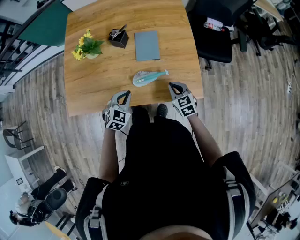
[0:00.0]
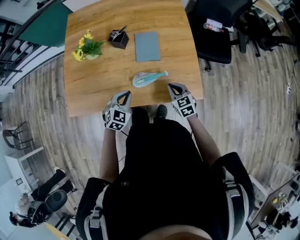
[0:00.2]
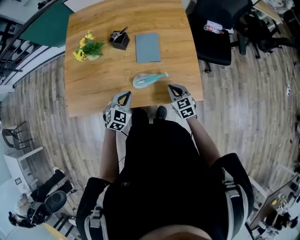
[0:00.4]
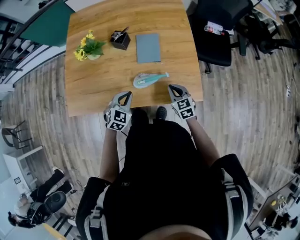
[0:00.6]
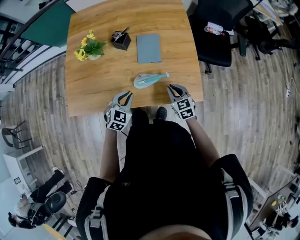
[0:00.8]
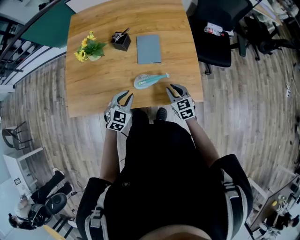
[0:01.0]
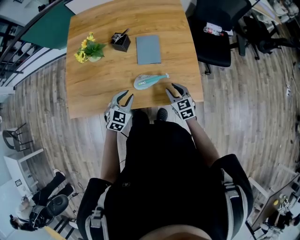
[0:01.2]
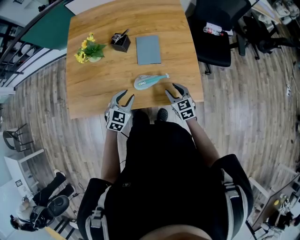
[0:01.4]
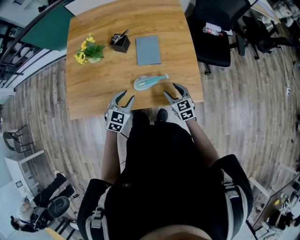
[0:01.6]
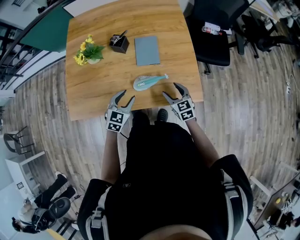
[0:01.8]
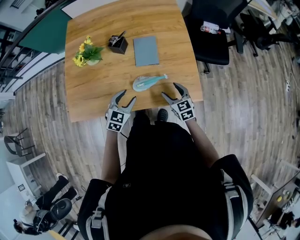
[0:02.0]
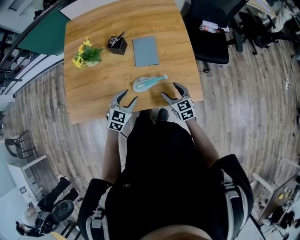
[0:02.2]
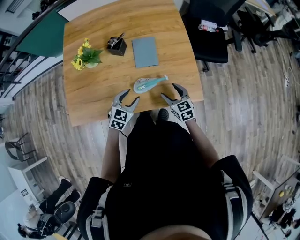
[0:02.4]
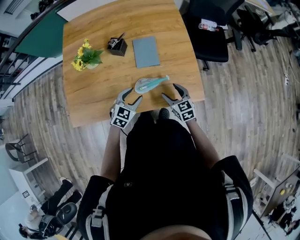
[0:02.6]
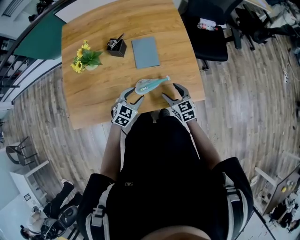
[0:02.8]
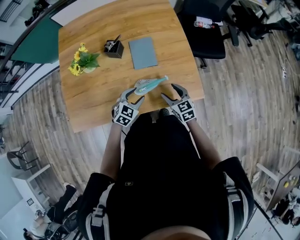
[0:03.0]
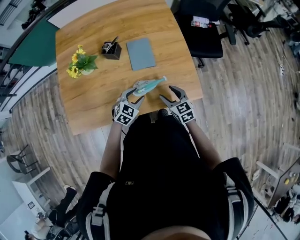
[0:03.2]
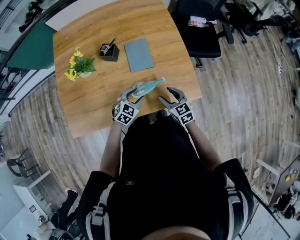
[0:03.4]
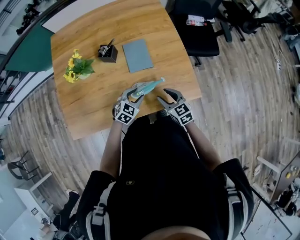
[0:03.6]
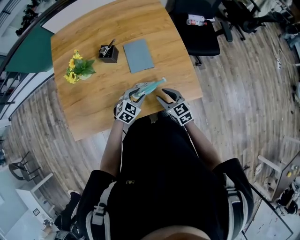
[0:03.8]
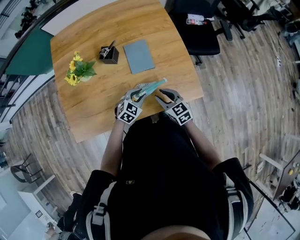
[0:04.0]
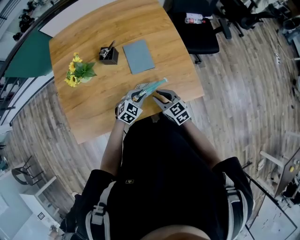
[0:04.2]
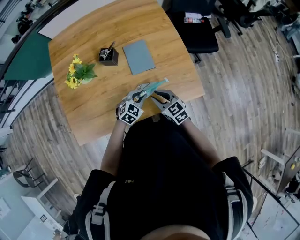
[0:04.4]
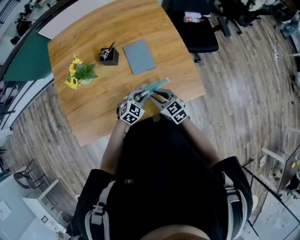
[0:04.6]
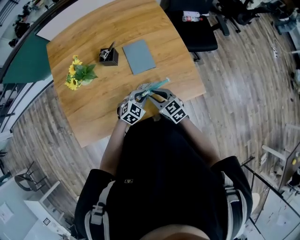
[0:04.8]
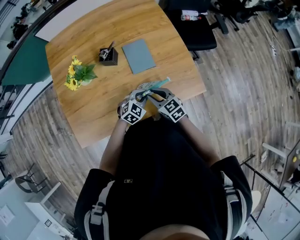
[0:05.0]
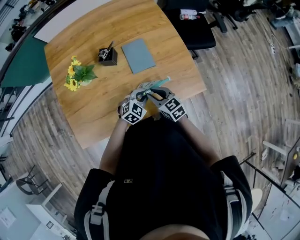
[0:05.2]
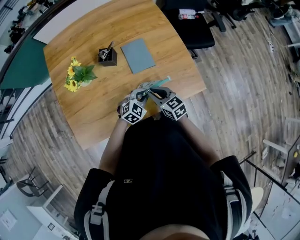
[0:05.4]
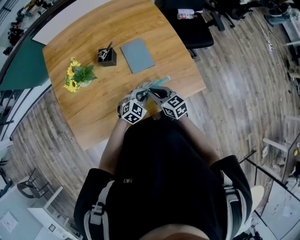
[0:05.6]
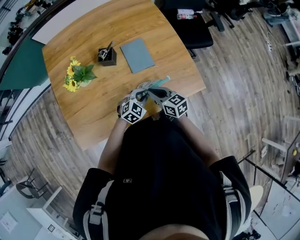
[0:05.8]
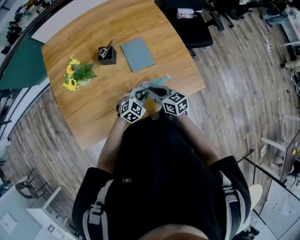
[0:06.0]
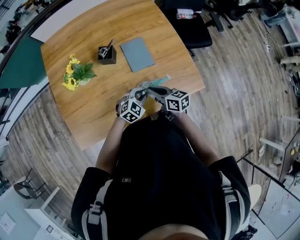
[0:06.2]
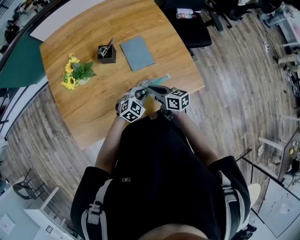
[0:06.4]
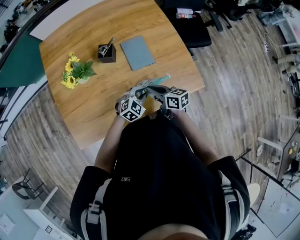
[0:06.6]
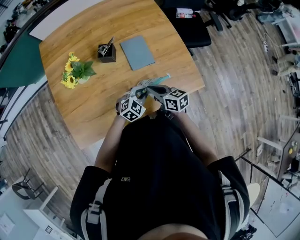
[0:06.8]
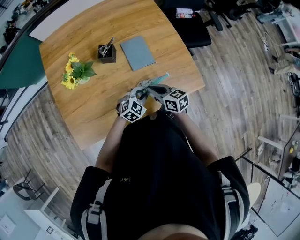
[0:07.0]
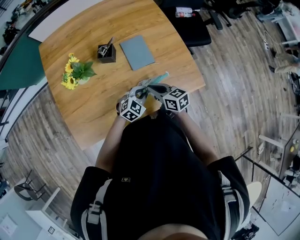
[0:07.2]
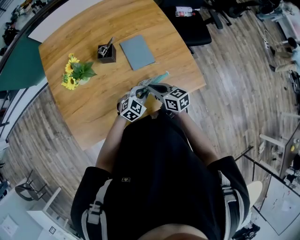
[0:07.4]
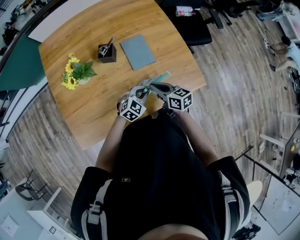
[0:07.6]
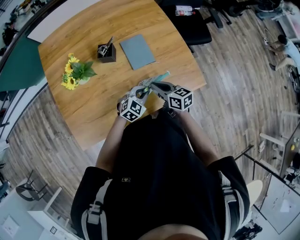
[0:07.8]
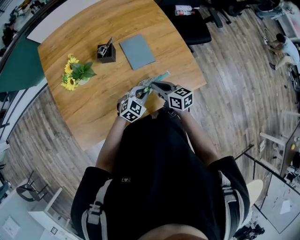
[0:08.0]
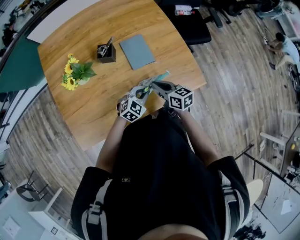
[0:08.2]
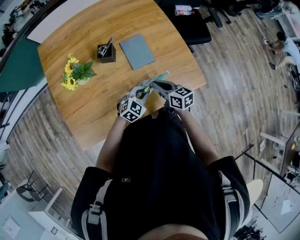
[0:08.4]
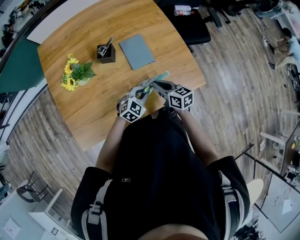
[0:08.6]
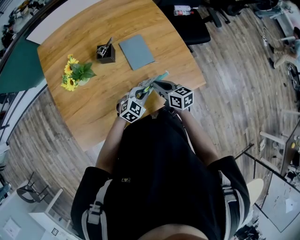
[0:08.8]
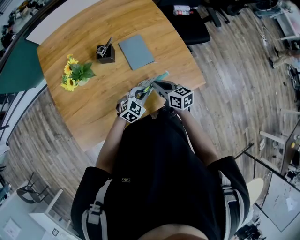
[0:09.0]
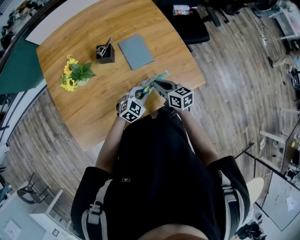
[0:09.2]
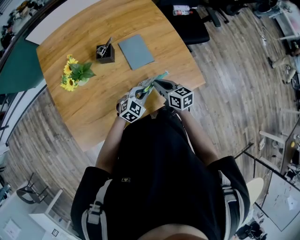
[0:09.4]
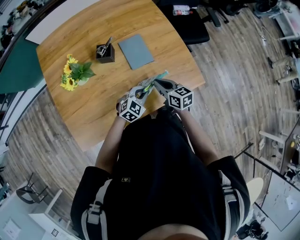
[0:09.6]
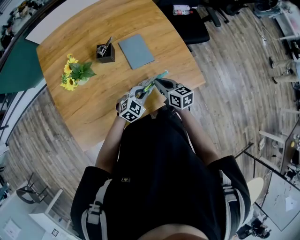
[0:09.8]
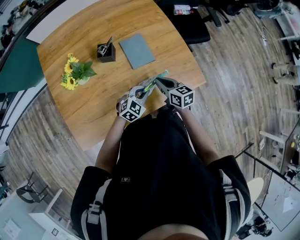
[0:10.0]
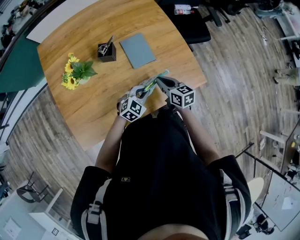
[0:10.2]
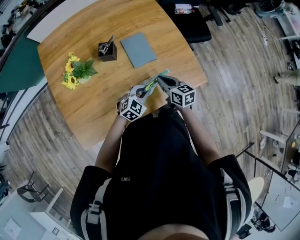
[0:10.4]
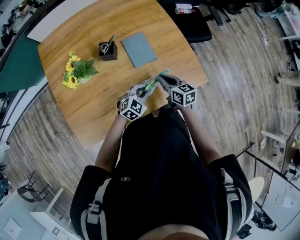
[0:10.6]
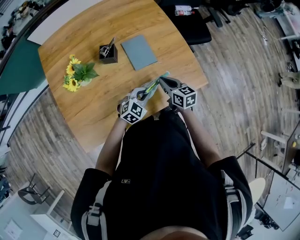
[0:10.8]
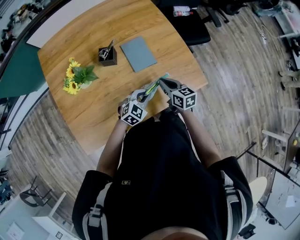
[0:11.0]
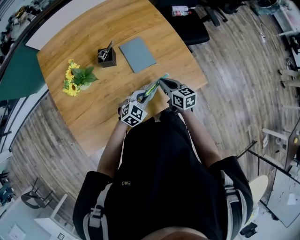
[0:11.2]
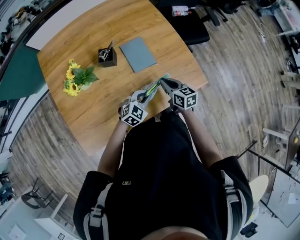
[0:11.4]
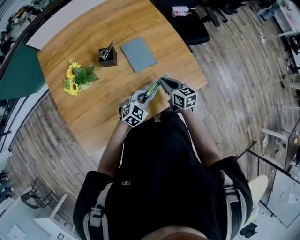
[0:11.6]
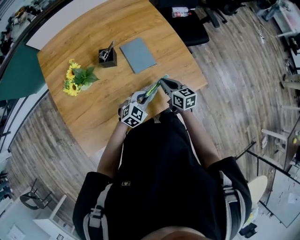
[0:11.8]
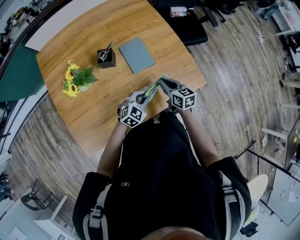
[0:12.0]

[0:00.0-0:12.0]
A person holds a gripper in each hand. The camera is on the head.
0:00.0 to 0:01.6: The right gripper opens, while the left gripper opens its fingers.
0:01.6 to 0:03.0: The left gripper changes place by roughly 5 cm.
0:03.0 to 0:04.4: The left gripper closes its fingers, while the right gripper heads to the left, covering some 10 cm, and closes up.
0:04.4 to 0:06.0: The right gripper swivels roughly 20 degrees.
0:06.0 to 0:10.4: The grippers move only a little.
0:10.4 to 0:12.0: There are only small adjustments of the grippers.

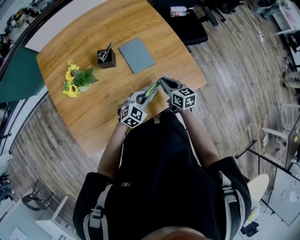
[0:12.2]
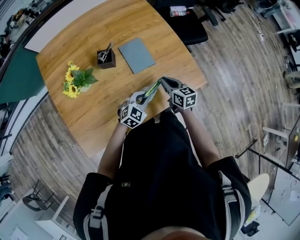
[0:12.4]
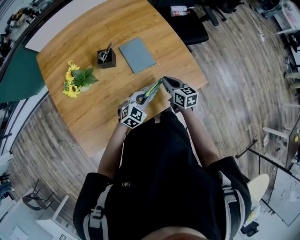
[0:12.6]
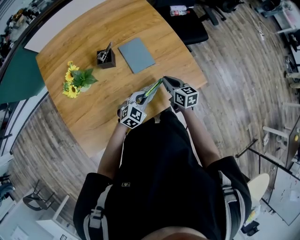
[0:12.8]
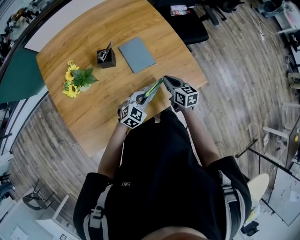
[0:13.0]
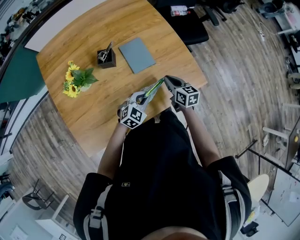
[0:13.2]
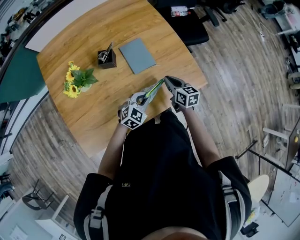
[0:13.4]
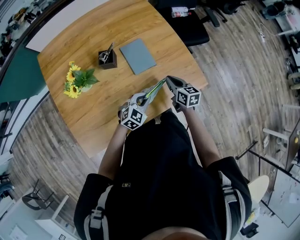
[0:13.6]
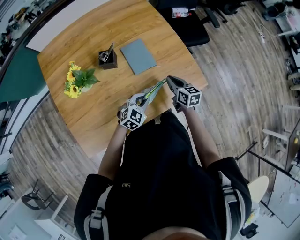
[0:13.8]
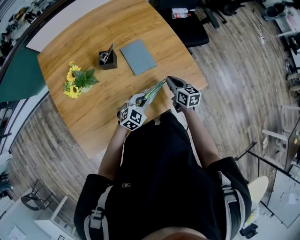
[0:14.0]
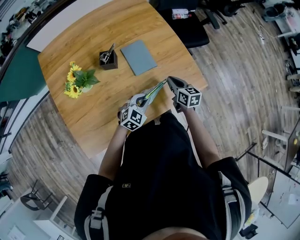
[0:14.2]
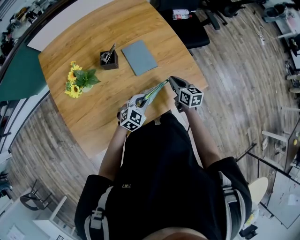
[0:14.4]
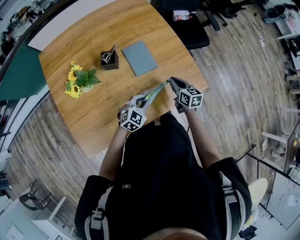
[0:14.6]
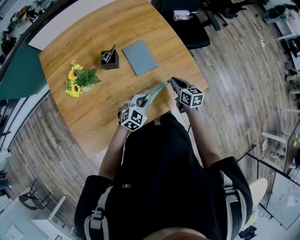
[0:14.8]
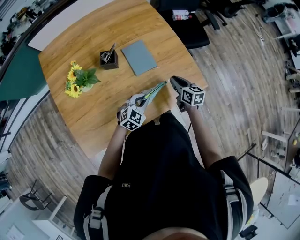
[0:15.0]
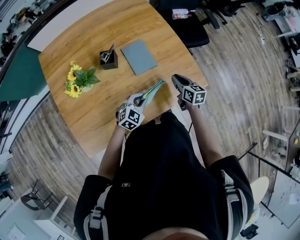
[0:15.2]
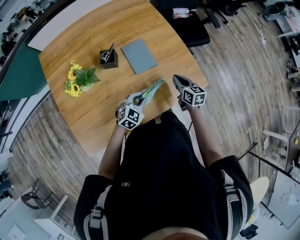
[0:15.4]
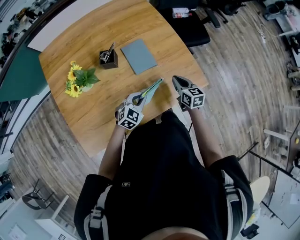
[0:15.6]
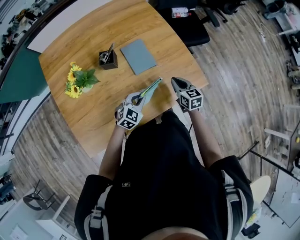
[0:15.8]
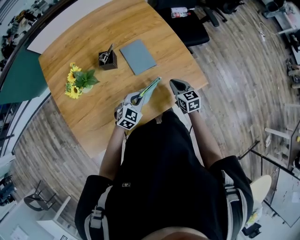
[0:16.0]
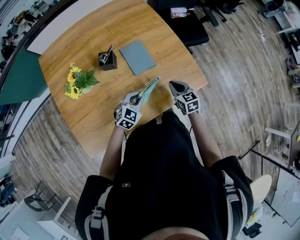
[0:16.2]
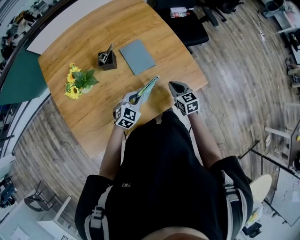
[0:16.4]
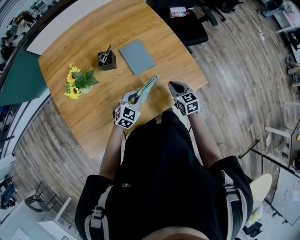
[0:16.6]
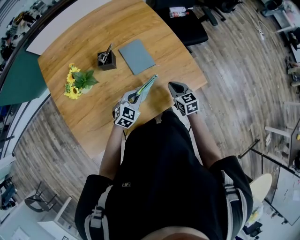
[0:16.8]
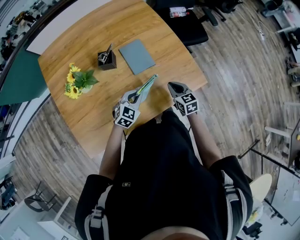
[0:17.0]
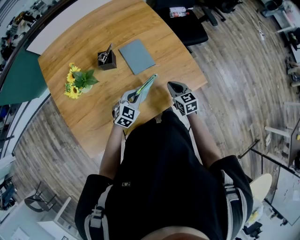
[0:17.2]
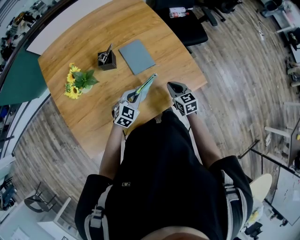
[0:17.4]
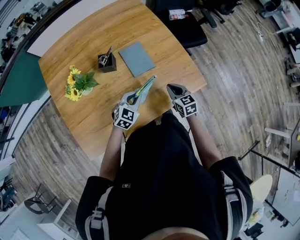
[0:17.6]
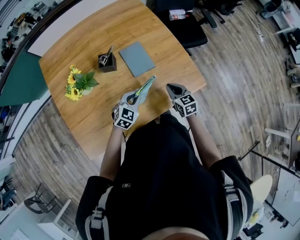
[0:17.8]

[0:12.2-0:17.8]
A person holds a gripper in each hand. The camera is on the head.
0:12.2 to 0:15.0: The grippers stay close to where they were, moving slightly.
0:15.0 to 0:16.4: There are only small adjustments of the grippers.
0:16.4 to 0:17.8: The two grippers keep their place.

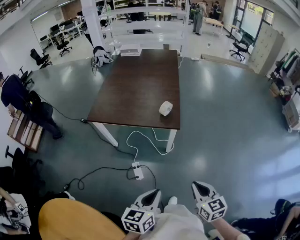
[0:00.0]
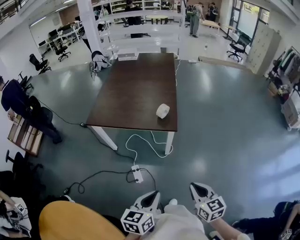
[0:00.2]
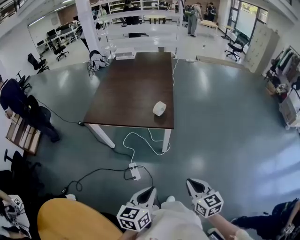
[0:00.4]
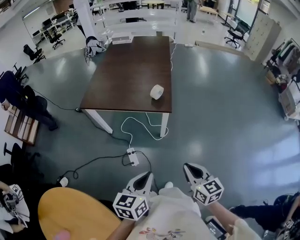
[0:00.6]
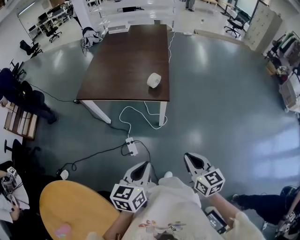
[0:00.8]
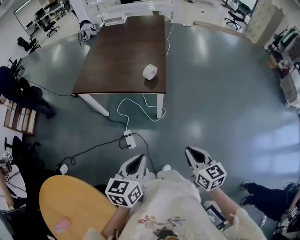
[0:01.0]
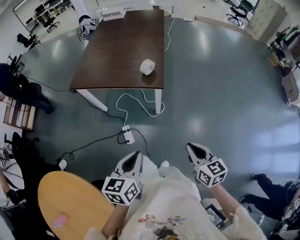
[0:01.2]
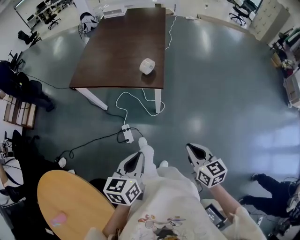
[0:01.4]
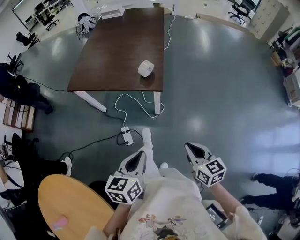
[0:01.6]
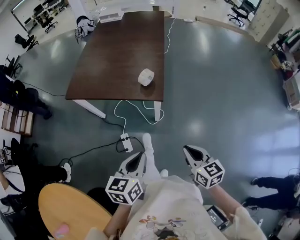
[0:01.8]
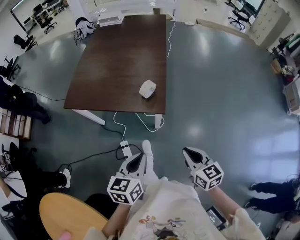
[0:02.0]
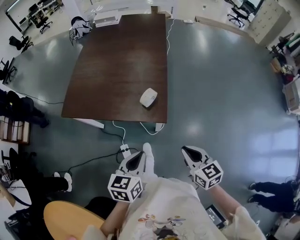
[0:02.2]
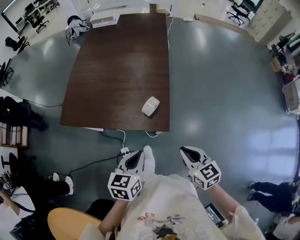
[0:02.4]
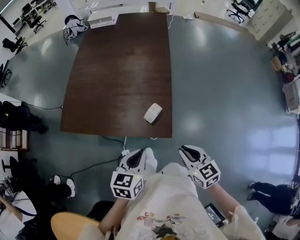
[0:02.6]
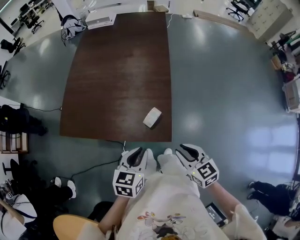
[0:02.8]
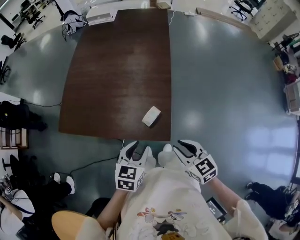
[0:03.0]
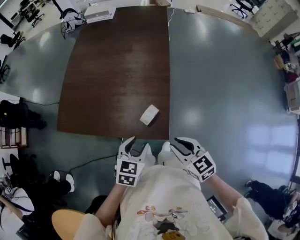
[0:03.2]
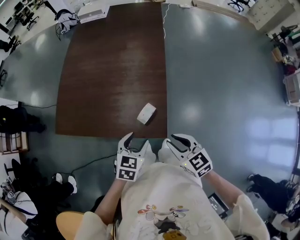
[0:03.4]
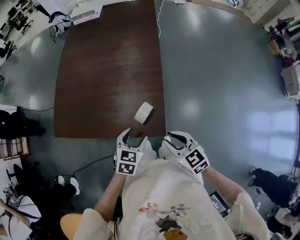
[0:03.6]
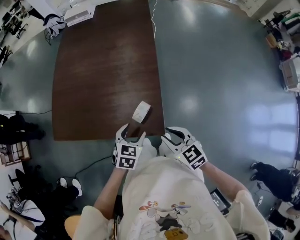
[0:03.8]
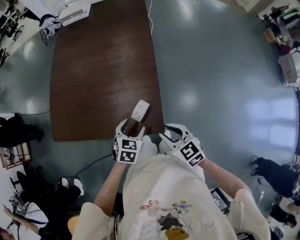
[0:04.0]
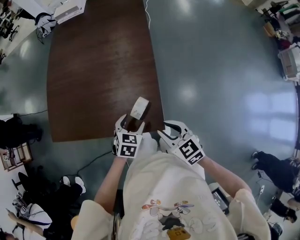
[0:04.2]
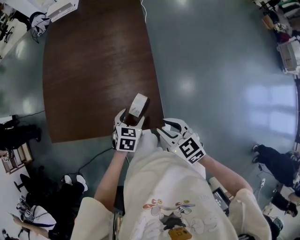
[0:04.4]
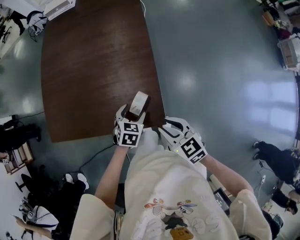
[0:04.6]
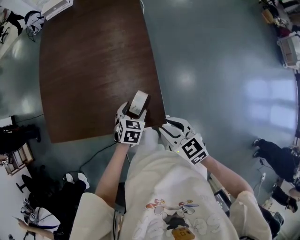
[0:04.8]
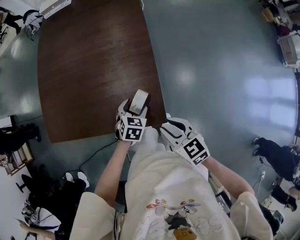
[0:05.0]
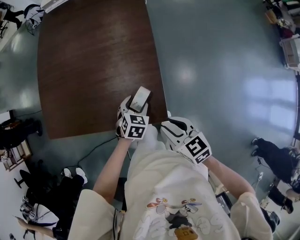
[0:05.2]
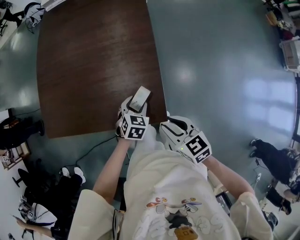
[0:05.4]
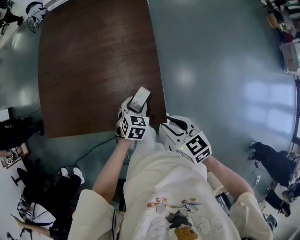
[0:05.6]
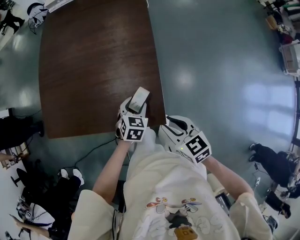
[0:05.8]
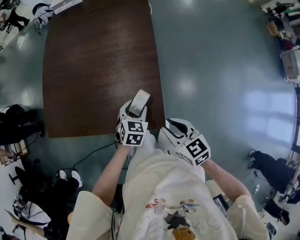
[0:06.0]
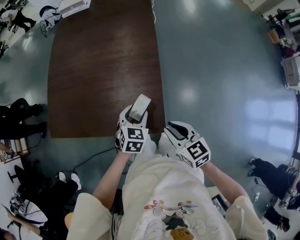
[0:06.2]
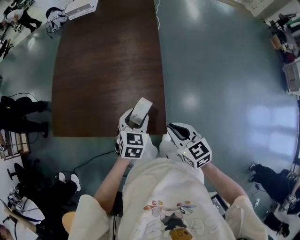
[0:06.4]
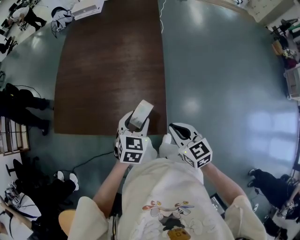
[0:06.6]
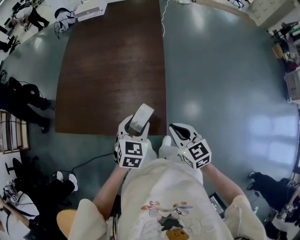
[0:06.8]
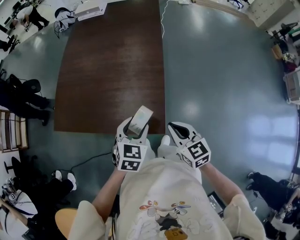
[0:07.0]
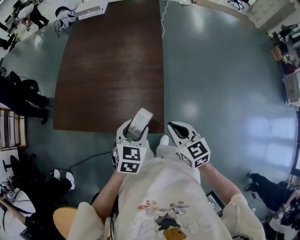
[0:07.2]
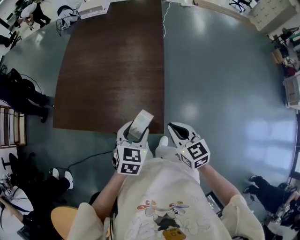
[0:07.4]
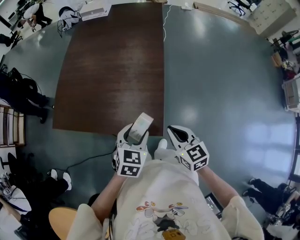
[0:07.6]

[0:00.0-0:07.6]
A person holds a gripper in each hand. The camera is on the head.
0:00.0 to 0:01.6: Both grippers travel together to the right and forward, roughly 10 cm.
0:01.6 to 0:03.0: Both grippers are carried forward, about 50 cm. The right gripper opens up. The left gripper changes its angle by about 20 degrees, and opens up.
0:03.0 to 0:04.6: The right gripper is displaced forward and downward by roughly 10 cm. The left gripper shifts roughly 20 cm downward and forward, changes its angle by approximately 20 degrees, and opens.
0:04.6 to 0:06.0: The left gripper moves some 5 cm.
0:06.0 to 0:07.6: The left gripper heads upward and backward, covering some 15 cm. Meanwhile the right gripper changes place by approximately 5 cm, and closes its fingers.
